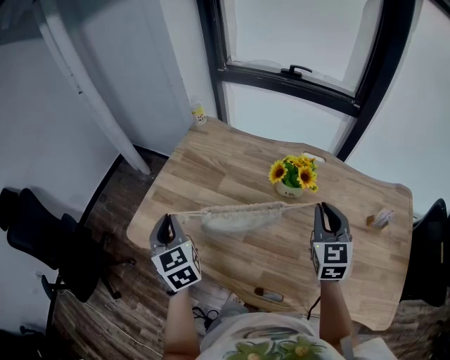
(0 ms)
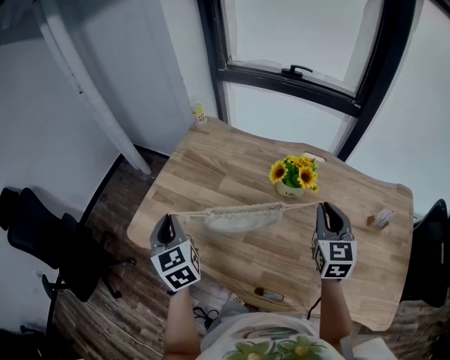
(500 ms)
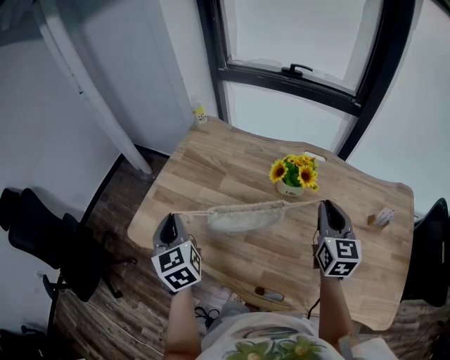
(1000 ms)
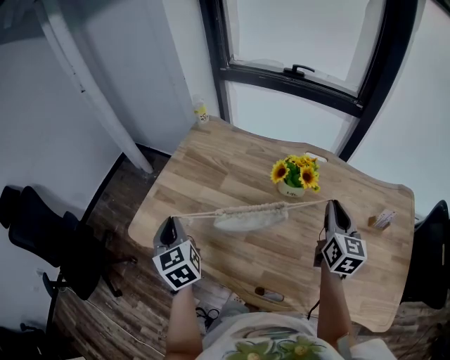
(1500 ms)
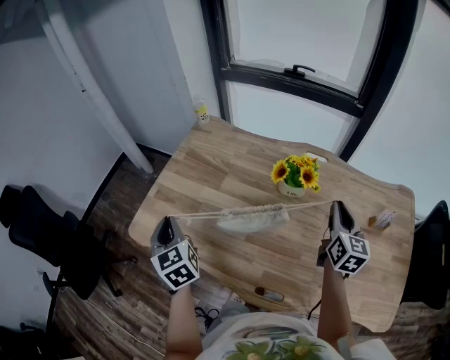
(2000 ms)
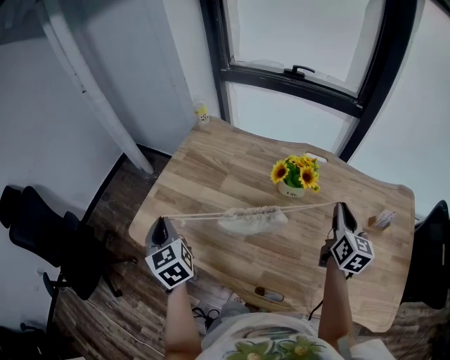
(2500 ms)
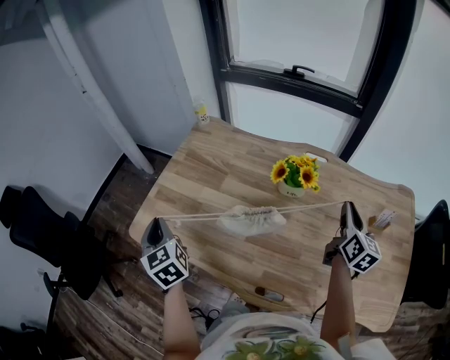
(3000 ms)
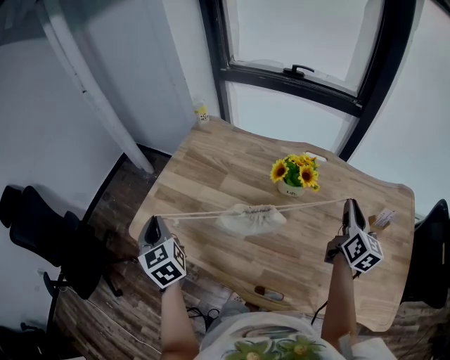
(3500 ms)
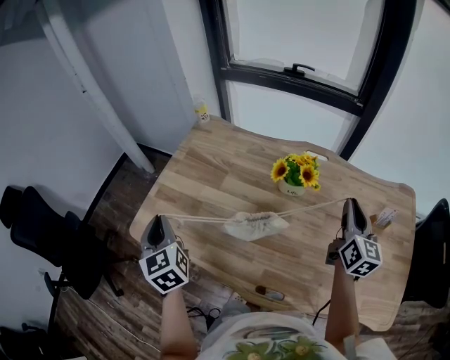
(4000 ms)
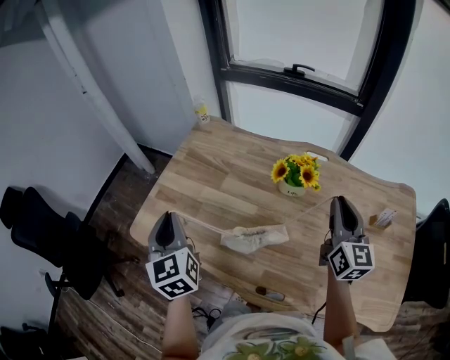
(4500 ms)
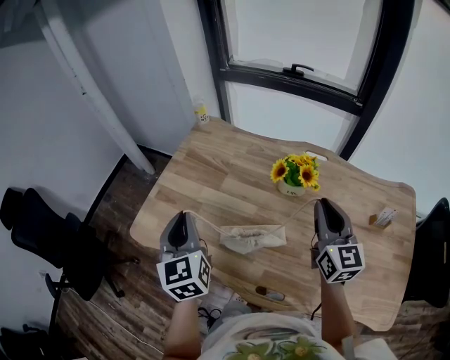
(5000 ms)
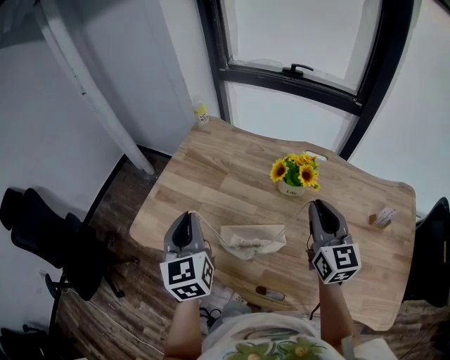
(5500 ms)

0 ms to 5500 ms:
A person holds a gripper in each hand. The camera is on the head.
0 ms to 2000 ms: The right gripper shifts roughly 5 cm to the right, and turns by approximately 30 degrees.
2000 ms to 3500 ms: The right gripper shifts by about 5 cm.
3500 ms to 5500 ms: The left gripper heads to the right, covering some 10 cm. The right gripper is displaced to the left by about 15 cm, and changes its angle by about 30 degrees.

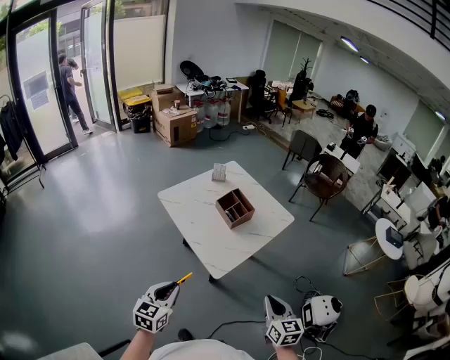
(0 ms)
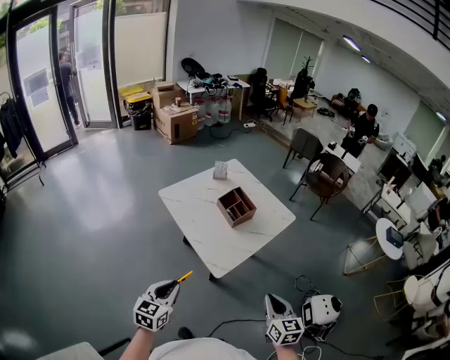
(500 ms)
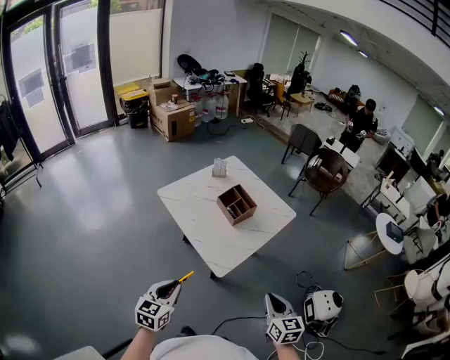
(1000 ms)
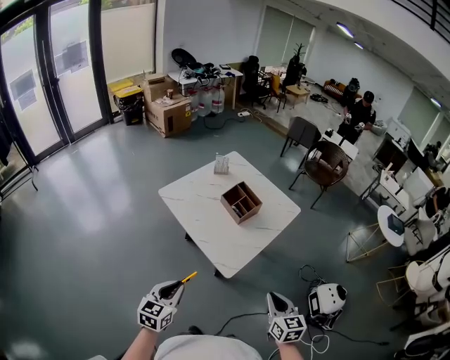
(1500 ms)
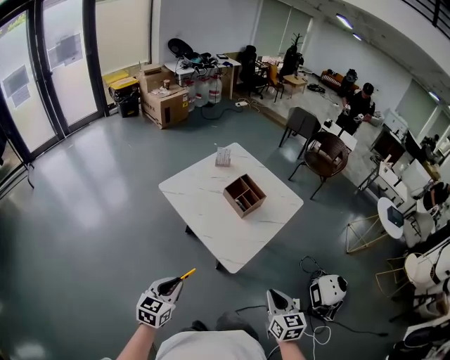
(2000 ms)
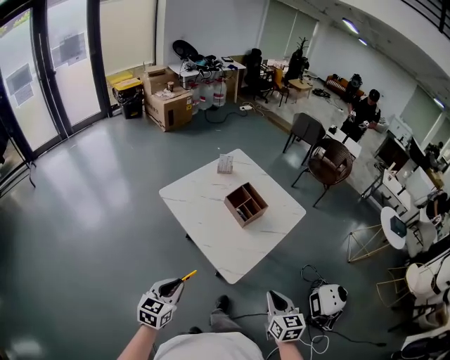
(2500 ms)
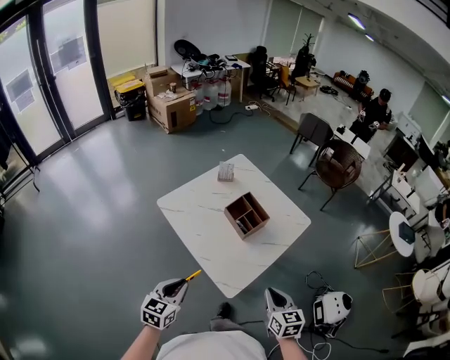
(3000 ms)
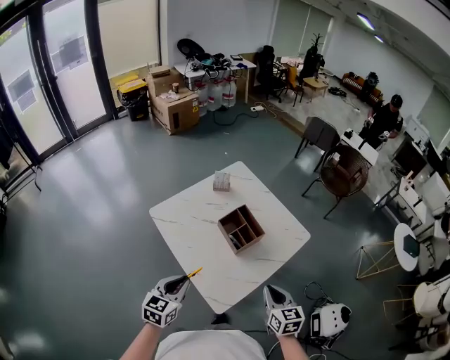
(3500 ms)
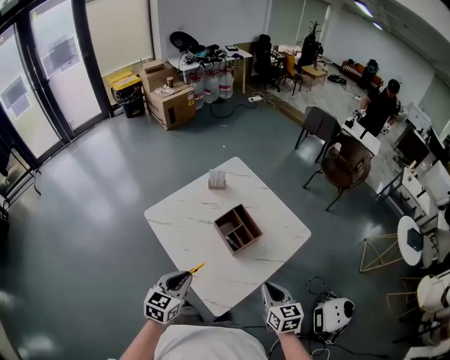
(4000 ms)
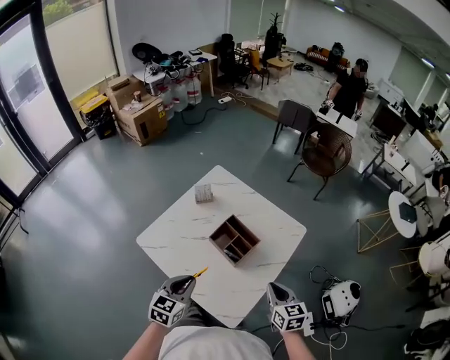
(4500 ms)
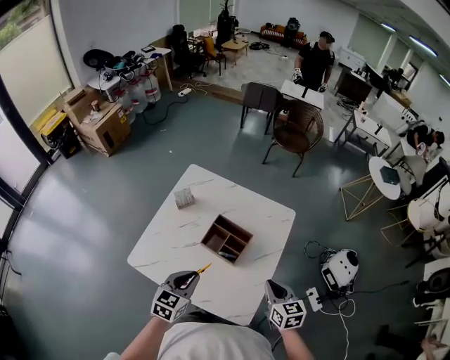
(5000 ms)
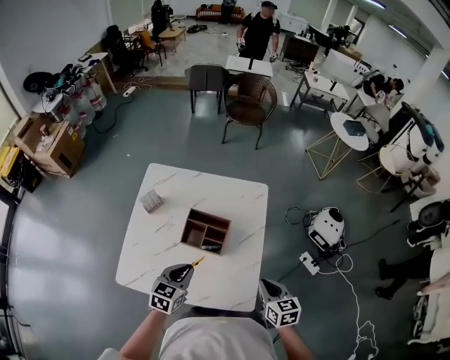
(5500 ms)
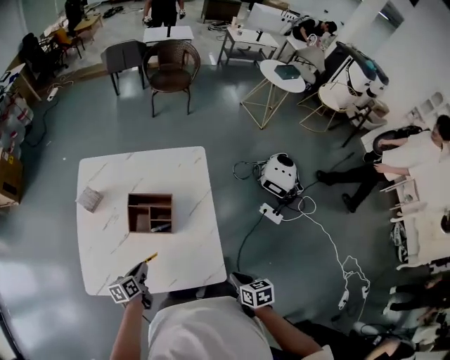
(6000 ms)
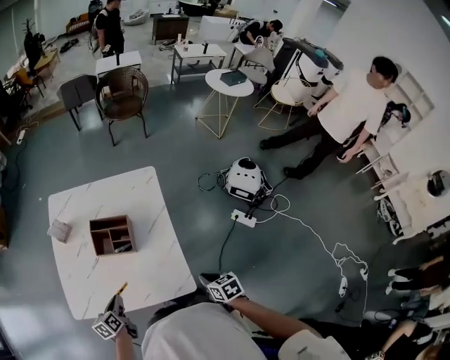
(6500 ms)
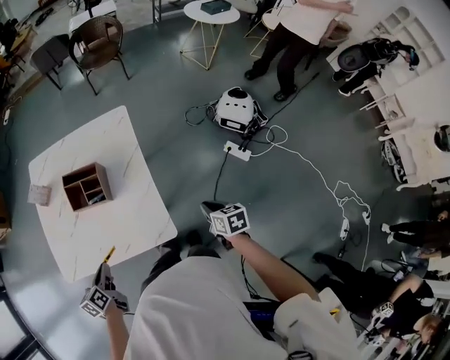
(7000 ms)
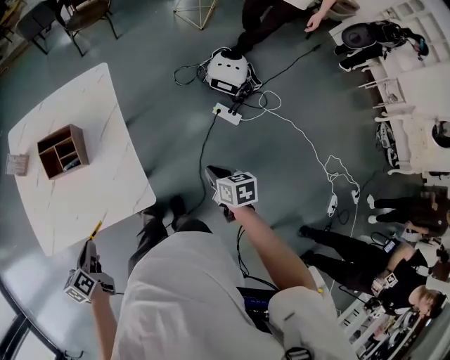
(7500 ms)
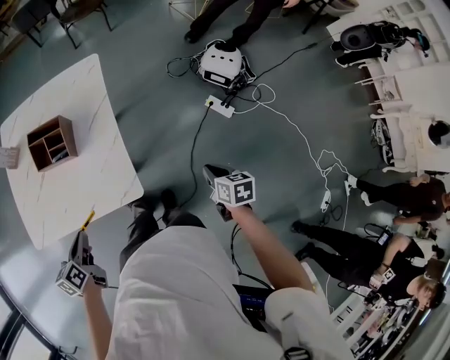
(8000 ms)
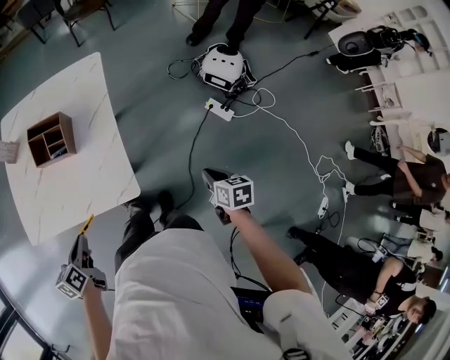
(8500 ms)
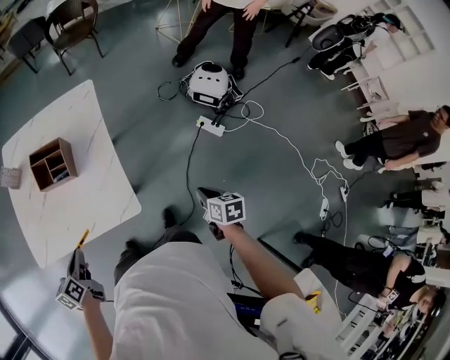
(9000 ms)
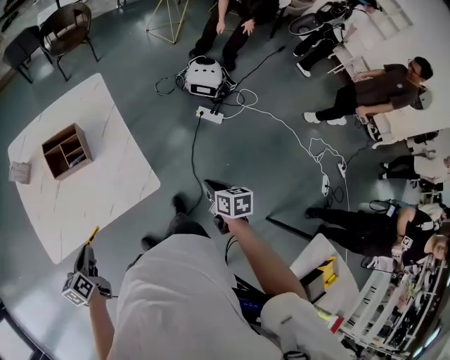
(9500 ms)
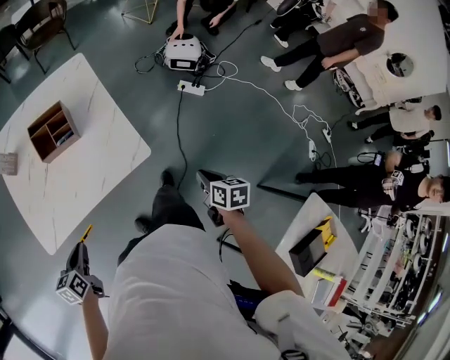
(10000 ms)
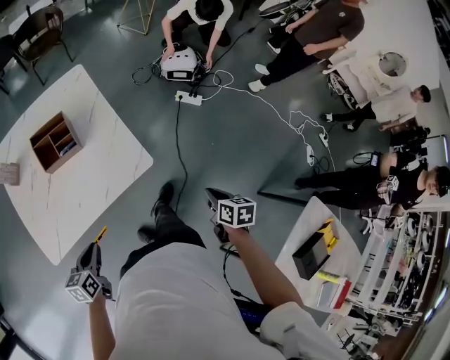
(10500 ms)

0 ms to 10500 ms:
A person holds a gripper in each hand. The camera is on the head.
0 ms to 2000 ms: The grippers both shift to the left by about 10 cm.
2000 ms to 4000 ms: Both grippers move forward, roughly 30 cm.
4000 ms to 6500 ms: The left gripper heads downward, covering about 20 cm, and swivels roughly 40 degrees; the right gripper changes place by about 20 cm, and swivels roughly 50 degrees.
6500 ms to 8500 ms: The right gripper goes approximately 25 cm to the right; the left gripper moves to the right, backward and upward, about 20 cm.
8500 ms to 10500 ms: The right gripper ends up roughly 30 cm from where it was, and swivels approximately 30 degrees. Meanwhile the left gripper changes place by roughly 15 cm, and changes its angle by roughly 30 degrees.

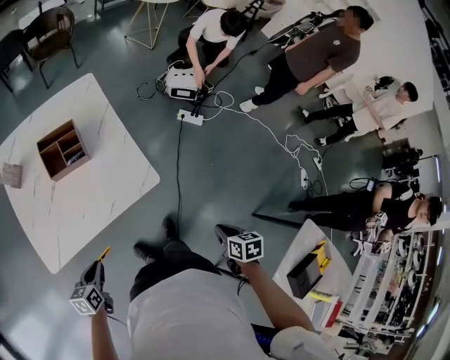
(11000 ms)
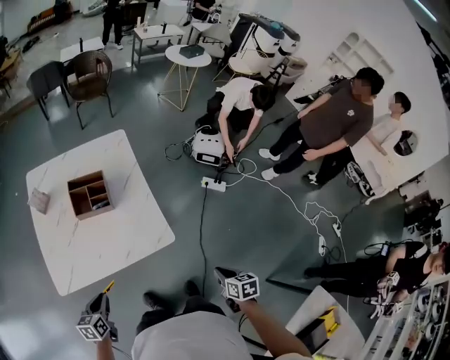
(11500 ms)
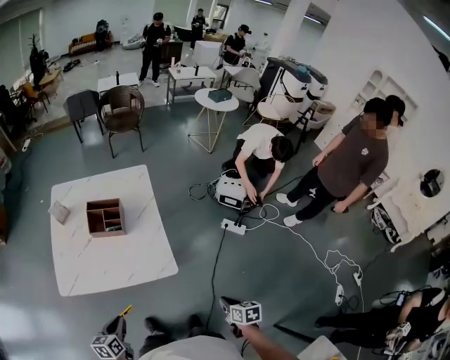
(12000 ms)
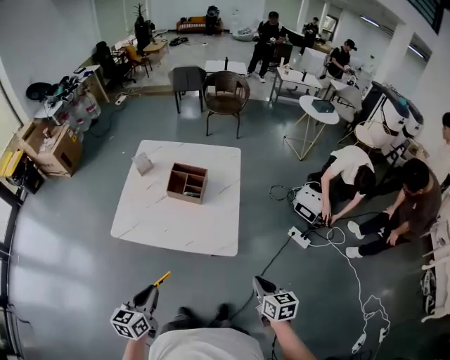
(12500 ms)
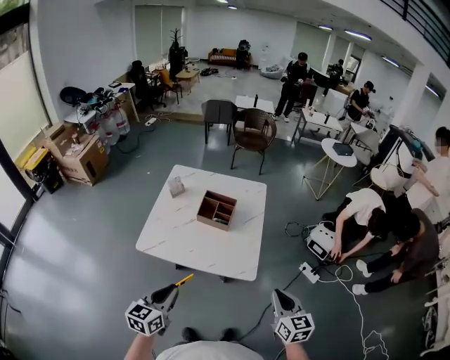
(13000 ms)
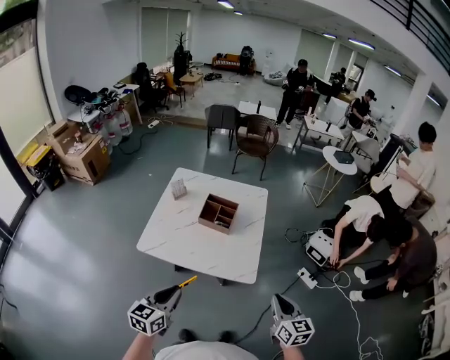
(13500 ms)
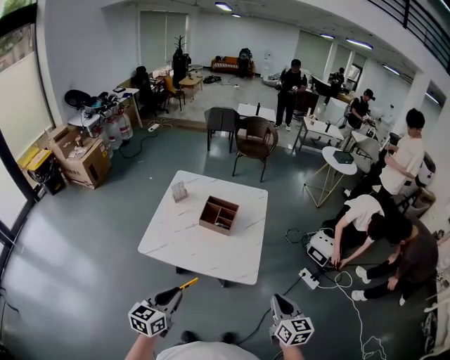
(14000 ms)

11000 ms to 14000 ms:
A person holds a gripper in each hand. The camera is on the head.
11000 ms to 12500 ms: The right gripper moves roughly 15 cm, and swivels about 50 degrees, while the left gripper is displaced upward by some 15 cm, and swivels some 40 degrees.
12500 ms to 14000 ms: The left gripper shifts about 10 cm upward. Meanwhile the right gripper heads upward, covering roughly 15 cm.

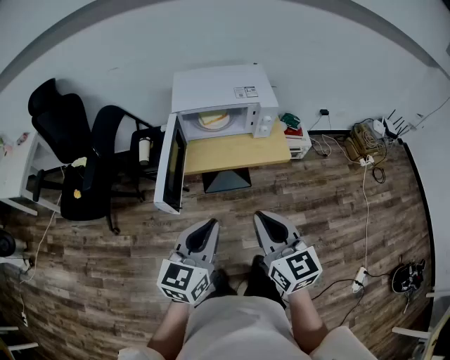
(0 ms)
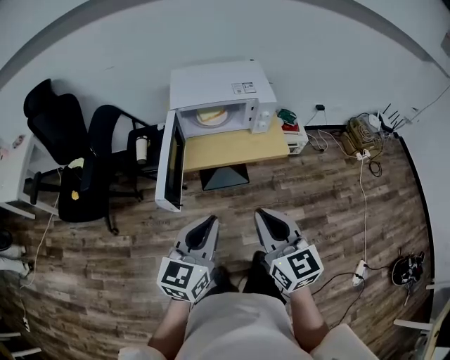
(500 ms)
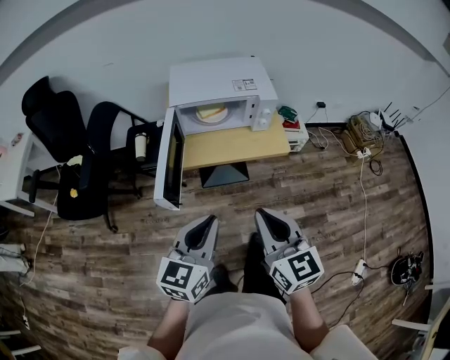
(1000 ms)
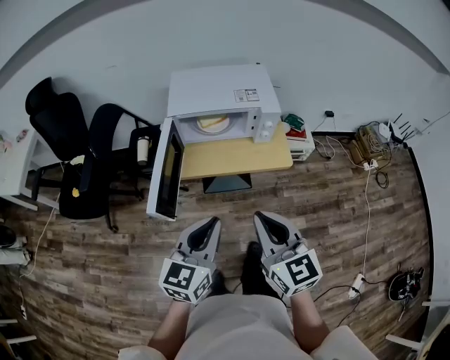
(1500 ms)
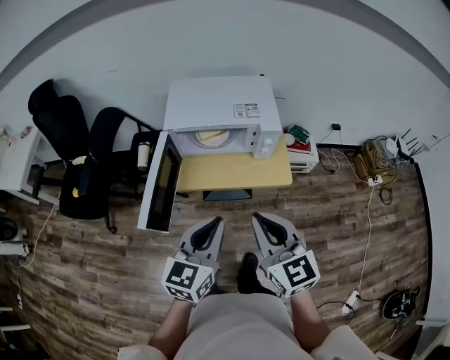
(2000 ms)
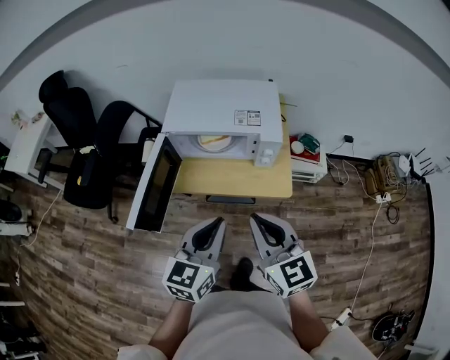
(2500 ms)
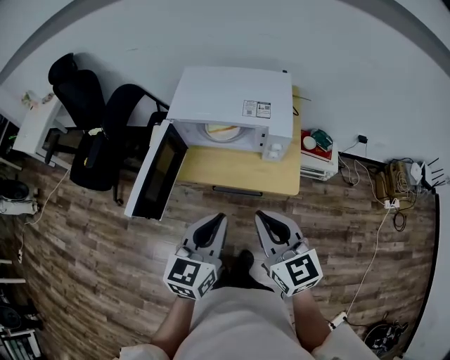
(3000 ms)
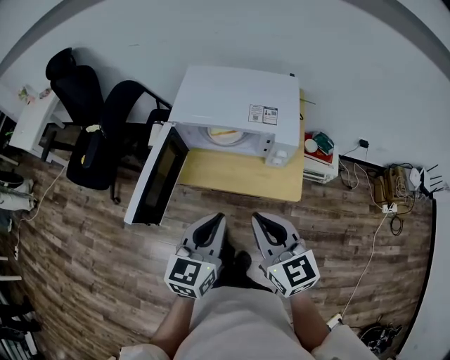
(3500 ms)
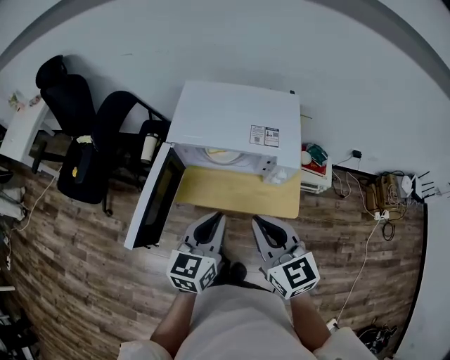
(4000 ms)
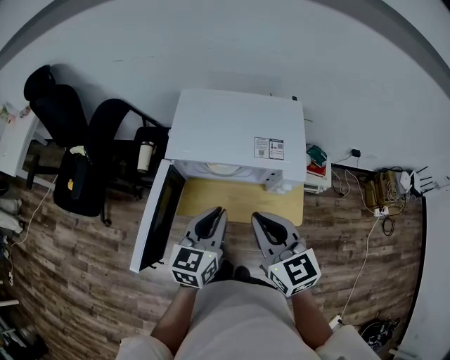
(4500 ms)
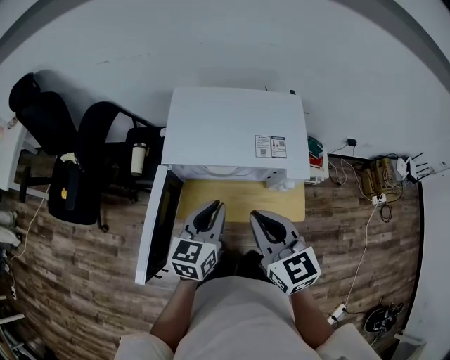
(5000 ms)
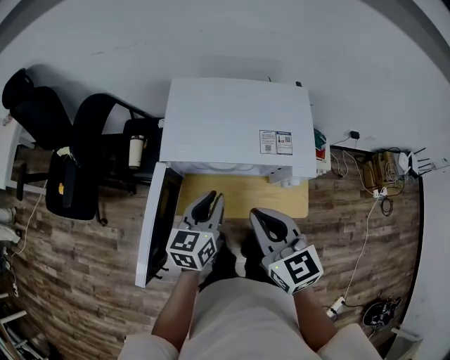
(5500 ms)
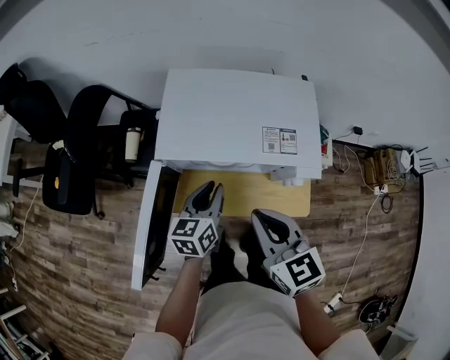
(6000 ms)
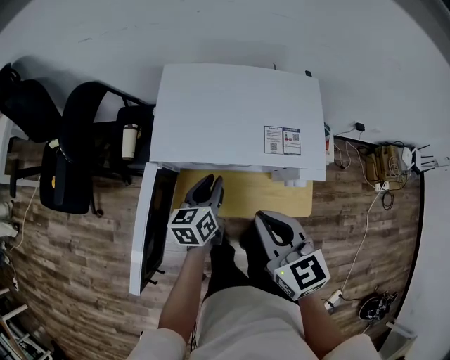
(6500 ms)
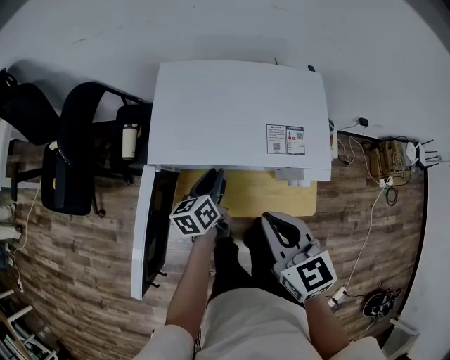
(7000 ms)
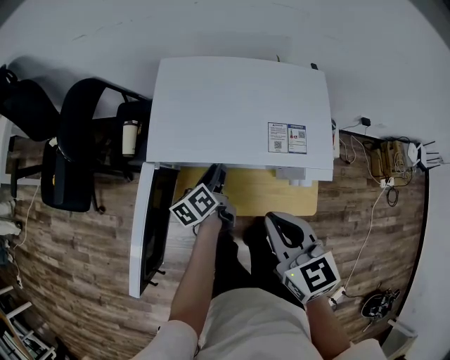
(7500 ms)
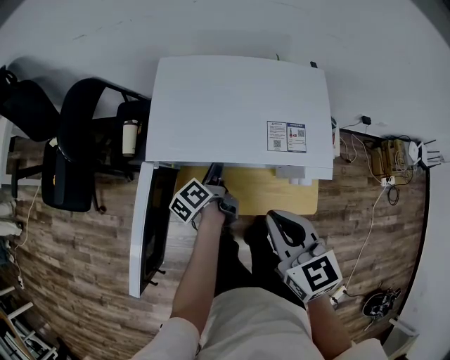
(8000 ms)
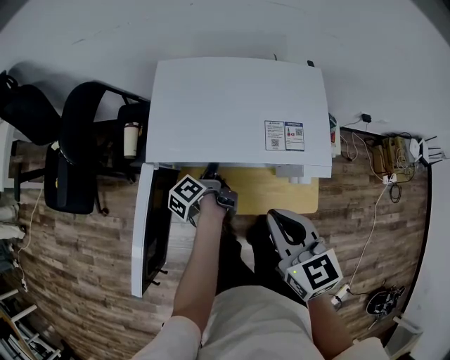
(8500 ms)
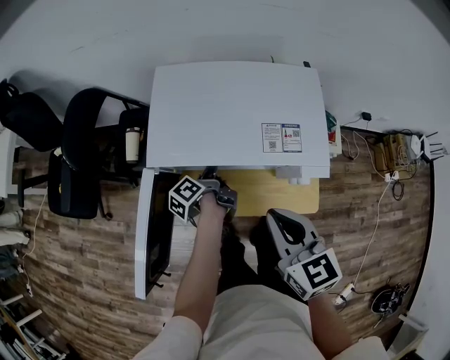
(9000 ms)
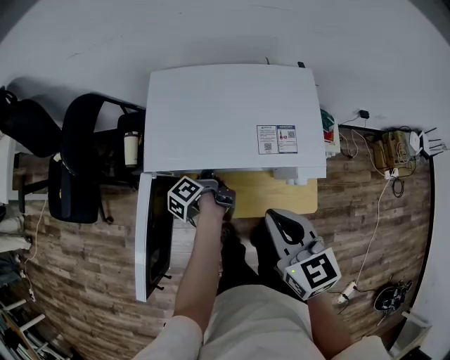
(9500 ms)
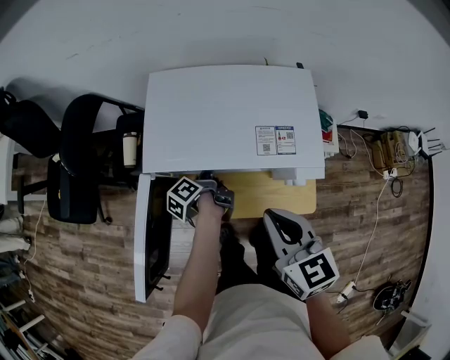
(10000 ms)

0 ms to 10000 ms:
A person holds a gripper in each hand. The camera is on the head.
0 ms to 2000 ms: The left gripper goes roughly 15 cm forward and to the right. The right gripper moves forward, roughly 15 cm.
2000 ms to 4000 ms: Both grippers move forward, approximately 15 cm.
4000 ms to 6000 ms: The right gripper is displaced forward and downward by approximately 10 cm; the left gripper heads forward and downward, covering roughly 20 cm.
6000 ms to 8000 ms: The left gripper goes roughly 15 cm downward and forward, and twists about 50 degrees counterclockwise, seen from behind.
8000 ms to 10000 ms: The grippers move only a little.
